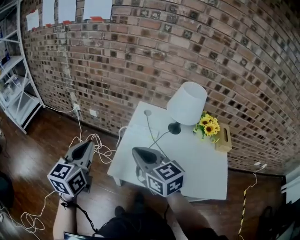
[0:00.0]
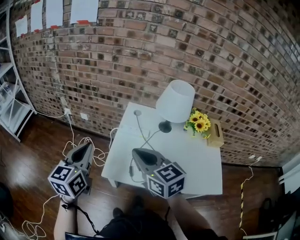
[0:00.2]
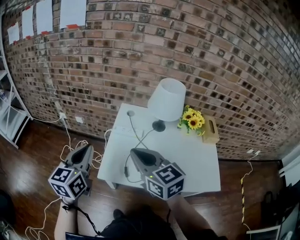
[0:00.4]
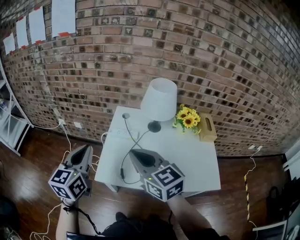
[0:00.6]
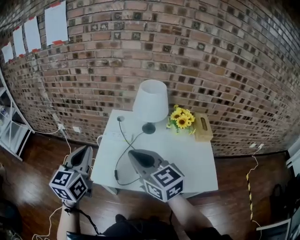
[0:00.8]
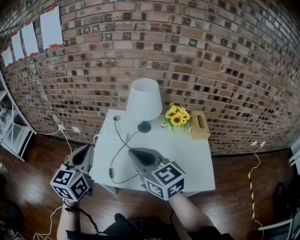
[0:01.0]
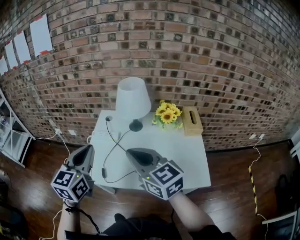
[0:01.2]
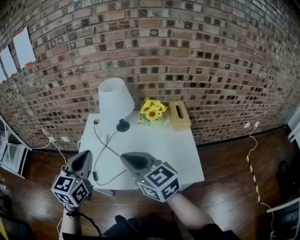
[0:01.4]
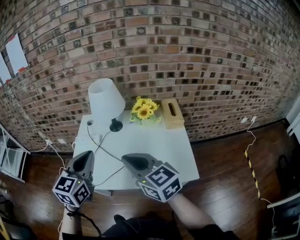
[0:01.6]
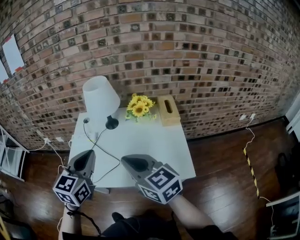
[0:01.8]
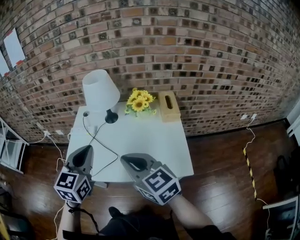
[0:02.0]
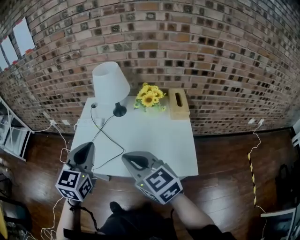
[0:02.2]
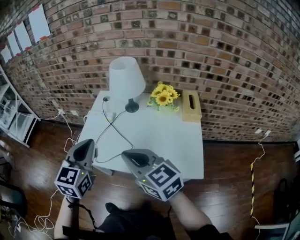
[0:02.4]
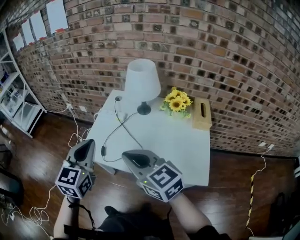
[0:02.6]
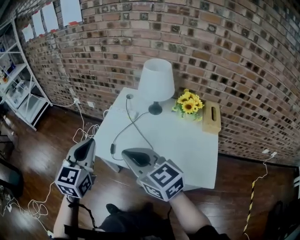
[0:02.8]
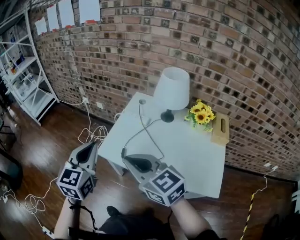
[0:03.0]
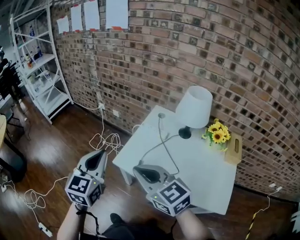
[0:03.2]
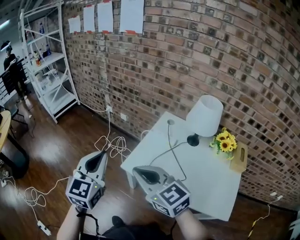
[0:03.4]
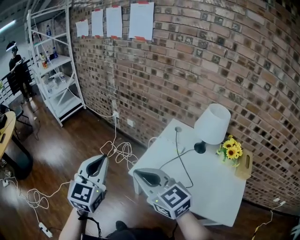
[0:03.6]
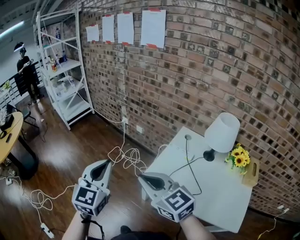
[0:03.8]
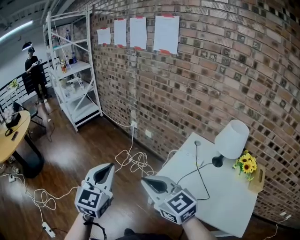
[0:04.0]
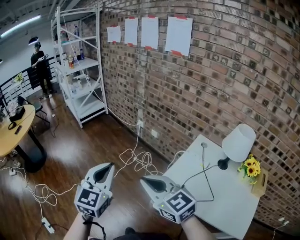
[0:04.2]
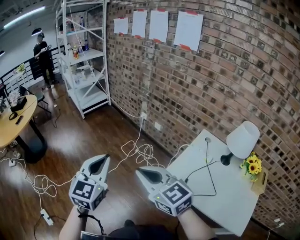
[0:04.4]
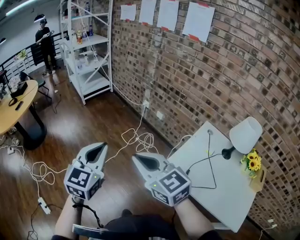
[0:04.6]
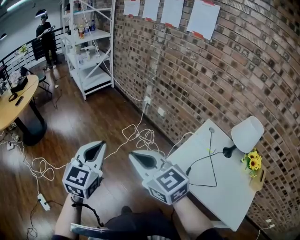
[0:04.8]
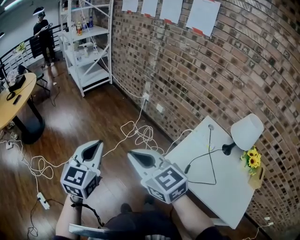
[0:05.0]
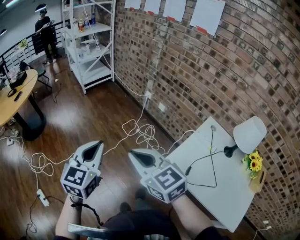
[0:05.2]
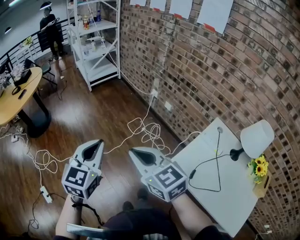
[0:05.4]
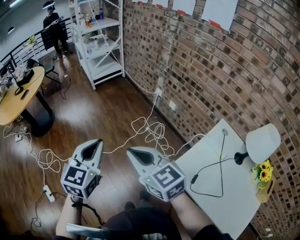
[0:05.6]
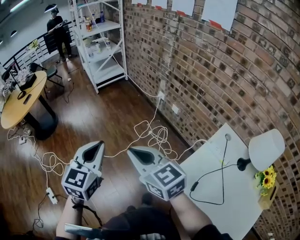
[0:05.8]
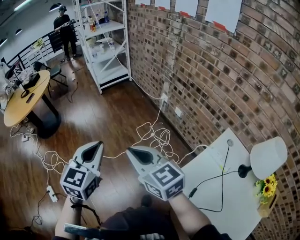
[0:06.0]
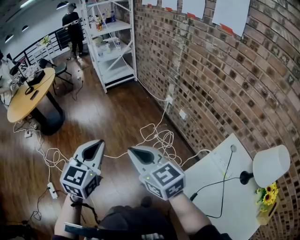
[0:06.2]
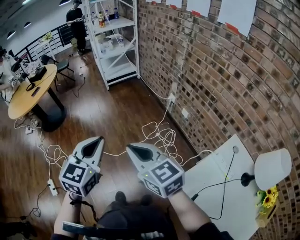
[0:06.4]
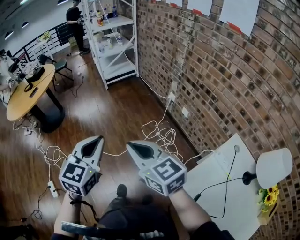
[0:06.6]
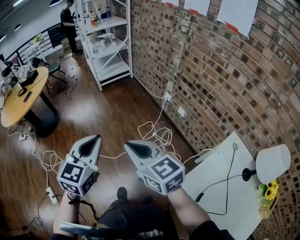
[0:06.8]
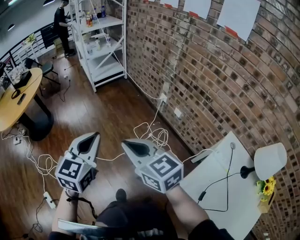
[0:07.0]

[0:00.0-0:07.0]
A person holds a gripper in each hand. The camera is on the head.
0:00.0 to 0:01.4: The left gripper heads to the right, covering some 30 cm. The right gripper shifts some 30 cm to the right and backward.
0:01.4 to 0:02.8: The right gripper travels to the left by about 10 cm, and turns by about 20 degrees. Meanwhile the left gripper heads to the left and backward, covering about 10 cm.
0:02.8 to 0:04.2: The left gripper travels to the left by approximately 30 cm, and changes its angle by approximately 20 degrees. The right gripper moves to the left and forward, some 30 cm, and changes its angle by approximately 20 degrees.
0:04.2 to 0:05.6: The right gripper goes some 15 cm forward and to the left. The left gripper moves to the left, forward and downward, roughly 15 cm.
0:05.6 to 0:07.0: Both grippers move forward, roughly 15 cm.

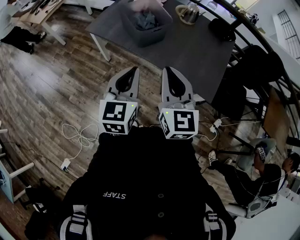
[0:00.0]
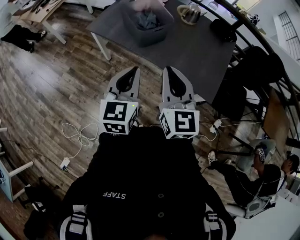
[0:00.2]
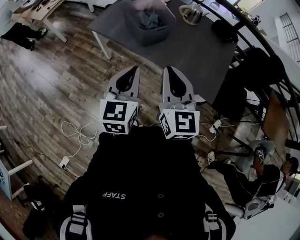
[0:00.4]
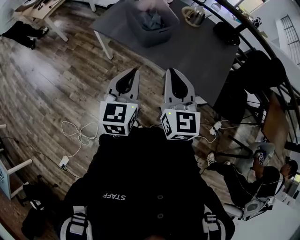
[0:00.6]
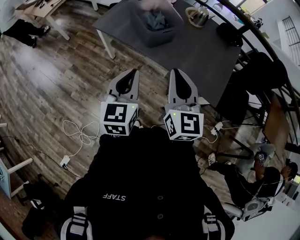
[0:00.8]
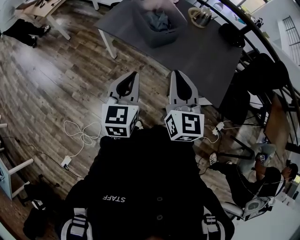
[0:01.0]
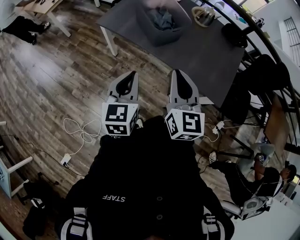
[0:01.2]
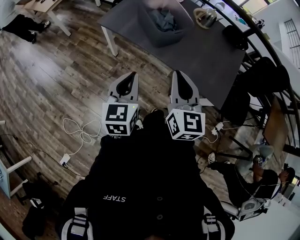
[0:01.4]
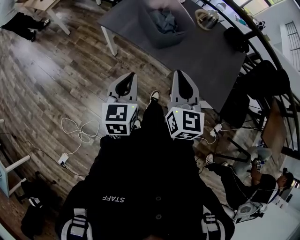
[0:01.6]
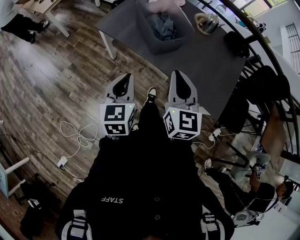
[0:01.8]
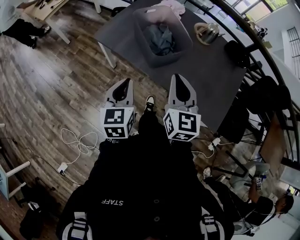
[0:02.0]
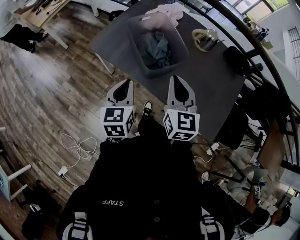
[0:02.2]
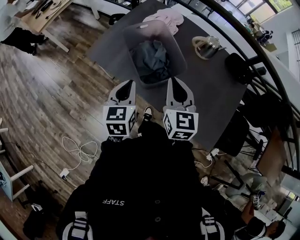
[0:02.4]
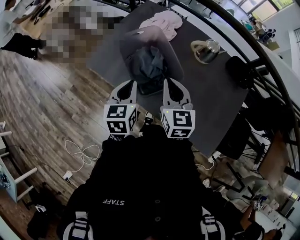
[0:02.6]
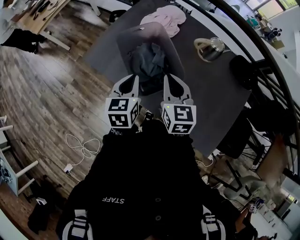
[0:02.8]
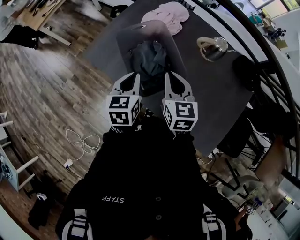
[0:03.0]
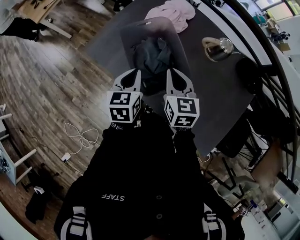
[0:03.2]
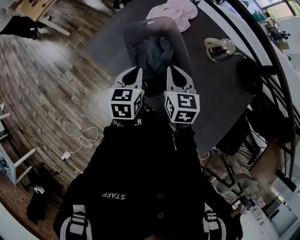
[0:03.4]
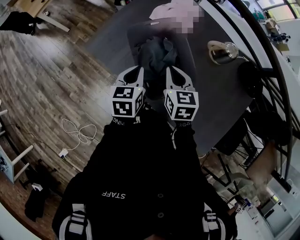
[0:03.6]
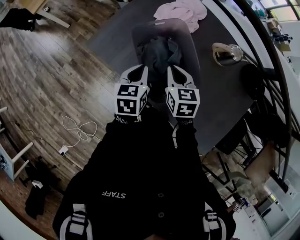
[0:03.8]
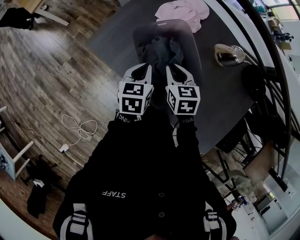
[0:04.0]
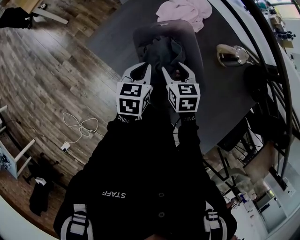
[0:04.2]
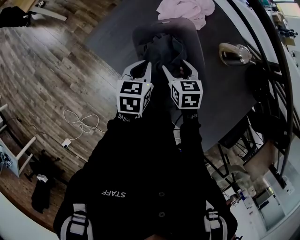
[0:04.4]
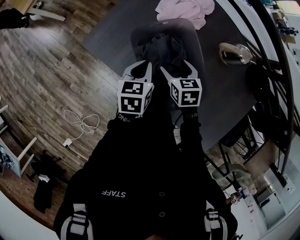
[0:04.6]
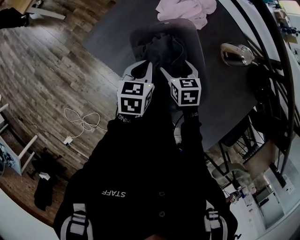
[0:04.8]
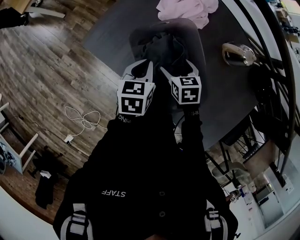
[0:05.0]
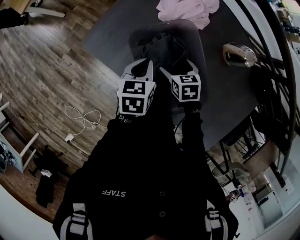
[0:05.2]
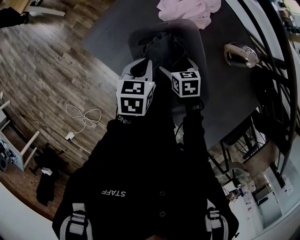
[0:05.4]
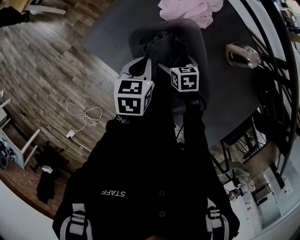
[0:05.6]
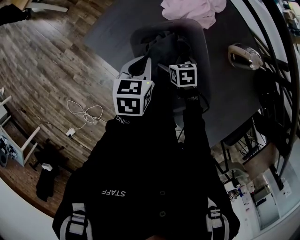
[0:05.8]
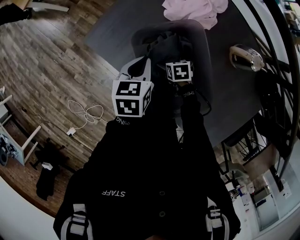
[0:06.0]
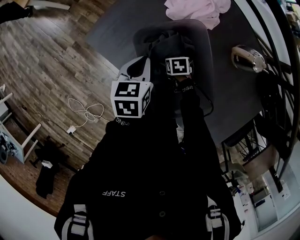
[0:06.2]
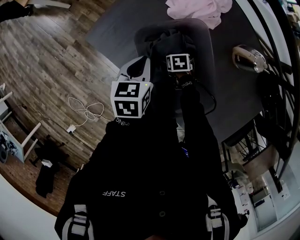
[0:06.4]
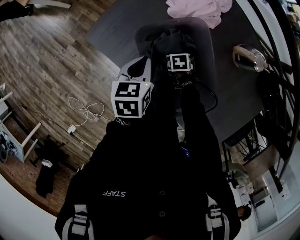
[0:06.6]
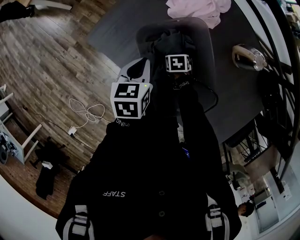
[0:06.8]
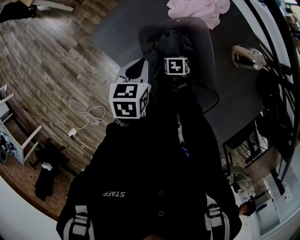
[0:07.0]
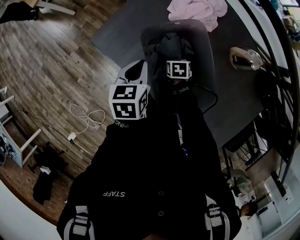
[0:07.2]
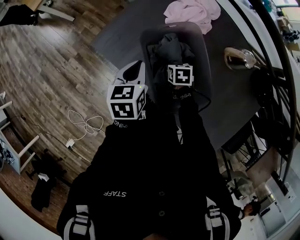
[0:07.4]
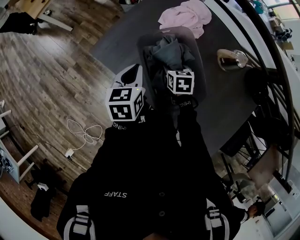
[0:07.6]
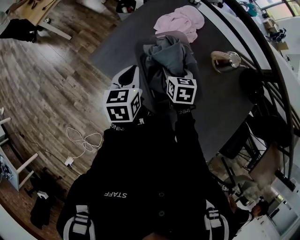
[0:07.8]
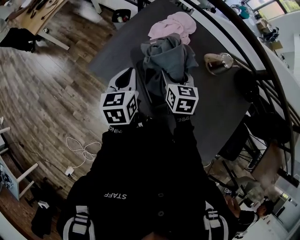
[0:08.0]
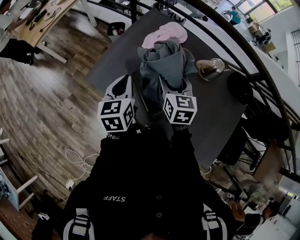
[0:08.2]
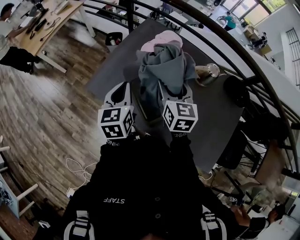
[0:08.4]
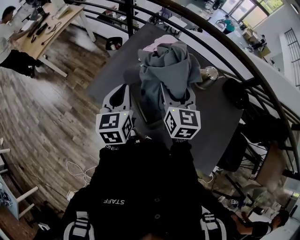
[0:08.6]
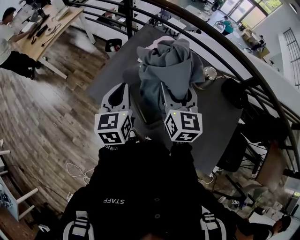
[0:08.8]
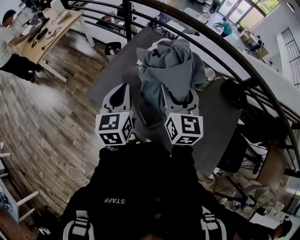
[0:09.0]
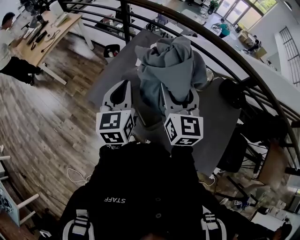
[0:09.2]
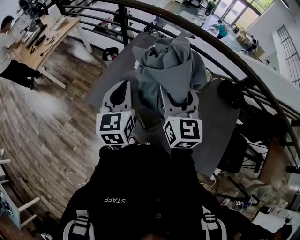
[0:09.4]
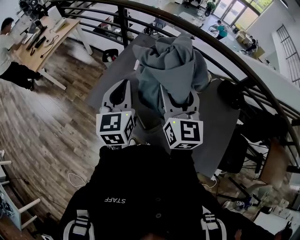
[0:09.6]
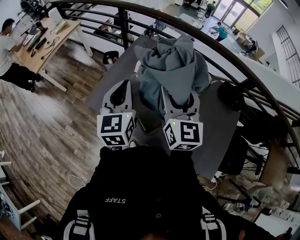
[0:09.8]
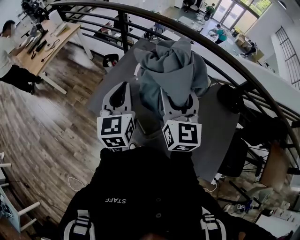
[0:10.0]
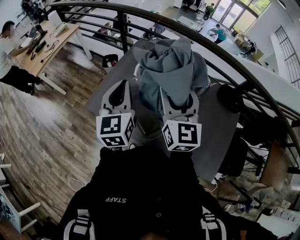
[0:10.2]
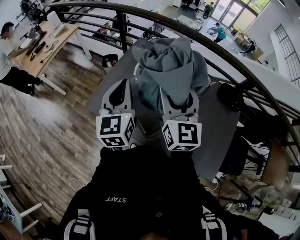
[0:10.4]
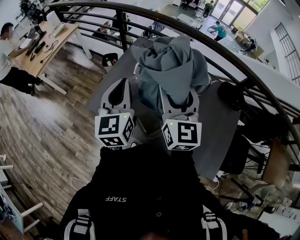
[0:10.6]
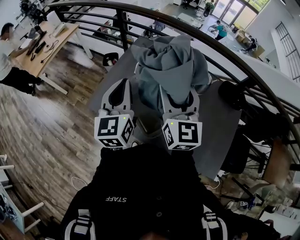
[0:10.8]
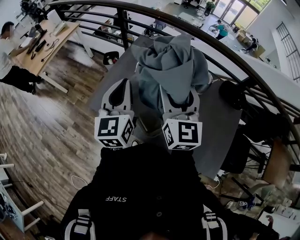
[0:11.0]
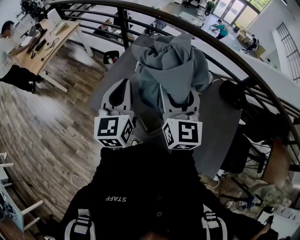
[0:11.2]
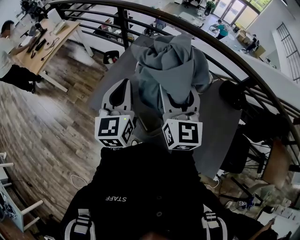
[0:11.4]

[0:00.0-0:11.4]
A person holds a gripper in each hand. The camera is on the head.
0:00.0 to 0:01.4: The right gripper travels to the left by roughly 5 cm; the left gripper is displaced to the left and downward by roughly 10 cm.
0:01.4 to 0:02.8: The grippers both shift forward by approximately 40 cm.
0:02.8 to 0:04.2: The left gripper shifts some 15 cm forward and downward. The right gripper goes some 20 cm downward, forward and to the left, changes its angle by roughly 30 degrees, and opens.
0:04.2 to 0:05.6: The left gripper is displaced forward by roughly 5 cm, while the right gripper shifts about 15 cm downward, and opens up.
0:05.6 to 0:07.2: The right gripper heads downward, covering about 5 cm, and closes its fingers; the left gripper ends up roughly 5 cm from where it was.
0:07.2 to 0:08.6: The left gripper shifts about 20 cm upward, and changes its angle by approximately 30 degrees. The right gripper moves upward, about 40 cm, and tilts its fingers some 60 degrees upward.
0:08.6 to 0:10.0: Both grippers move upward, approximately 10 cm.
0:10.0 to 0:11.4: The grippers make only small movements.

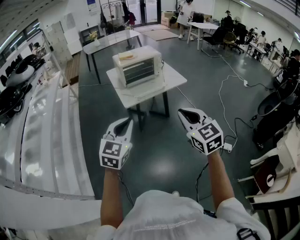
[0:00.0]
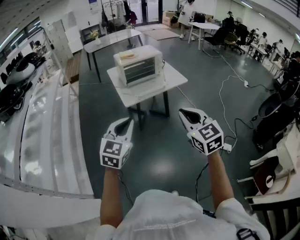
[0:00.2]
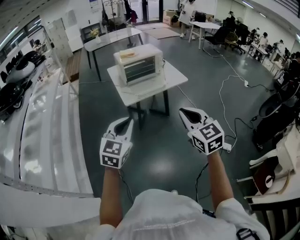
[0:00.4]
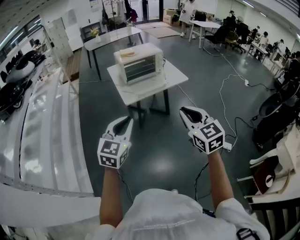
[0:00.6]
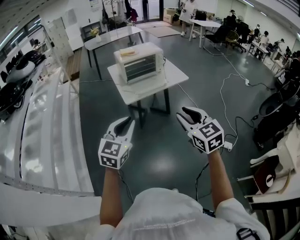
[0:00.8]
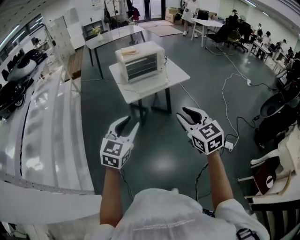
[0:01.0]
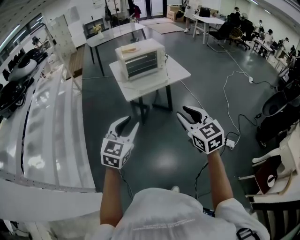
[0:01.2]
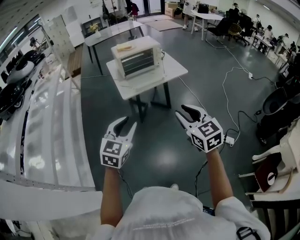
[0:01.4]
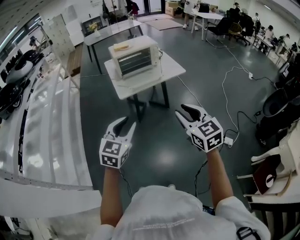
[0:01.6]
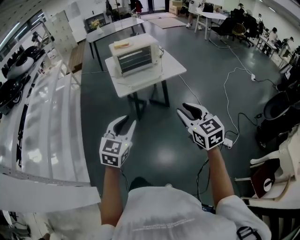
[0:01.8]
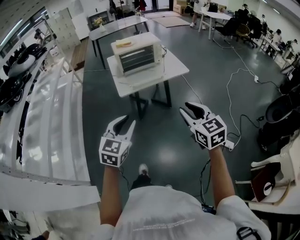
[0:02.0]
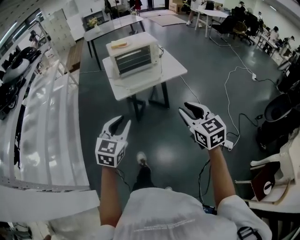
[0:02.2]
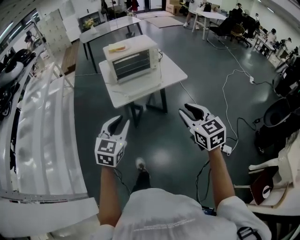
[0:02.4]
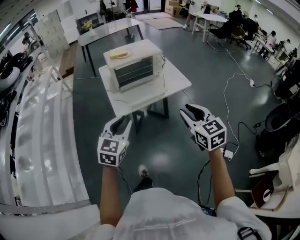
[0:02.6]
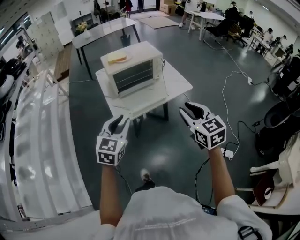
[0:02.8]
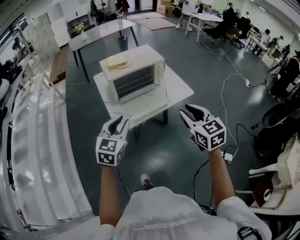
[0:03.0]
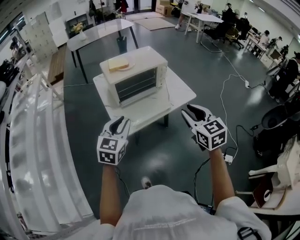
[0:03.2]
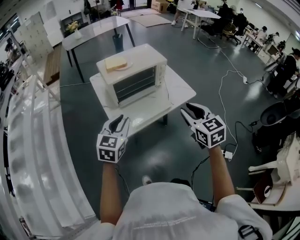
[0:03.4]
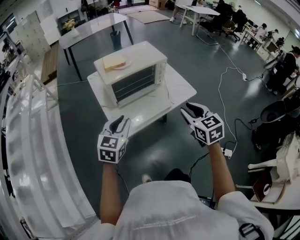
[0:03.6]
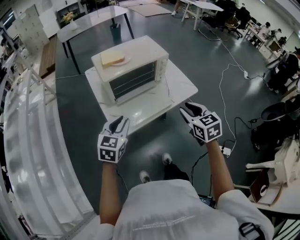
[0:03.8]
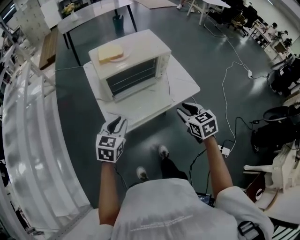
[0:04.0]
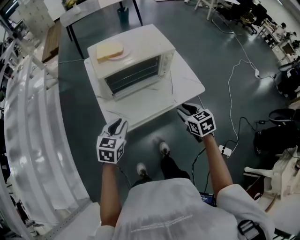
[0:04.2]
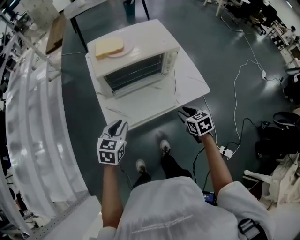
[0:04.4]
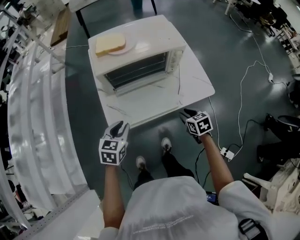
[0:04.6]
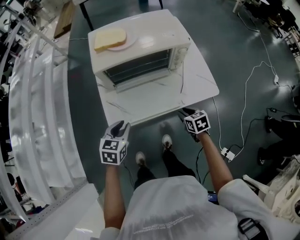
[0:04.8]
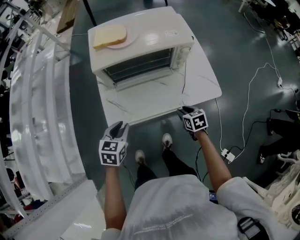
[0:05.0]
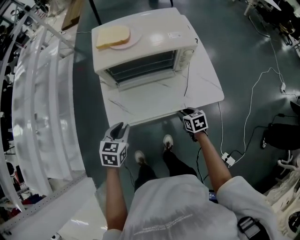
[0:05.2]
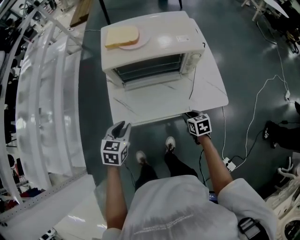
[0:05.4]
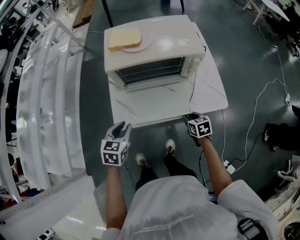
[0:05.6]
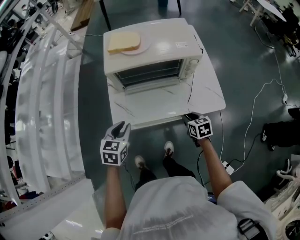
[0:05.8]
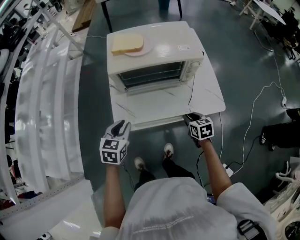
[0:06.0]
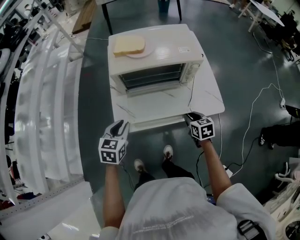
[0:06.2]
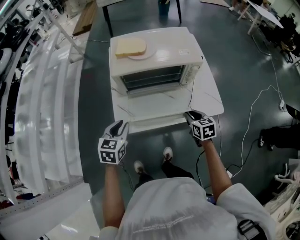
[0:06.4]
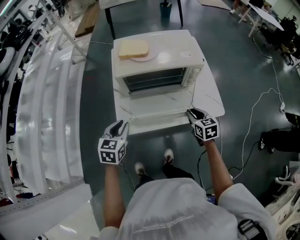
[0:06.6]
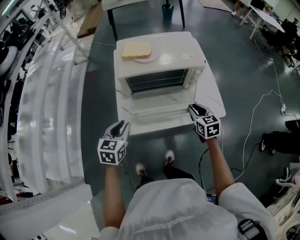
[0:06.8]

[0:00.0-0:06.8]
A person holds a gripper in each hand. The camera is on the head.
0:00.0 to 0:01.4: The left gripper ends up approximately 5 cm from where it was, and opens its fingers, while the right gripper opens its fingers.
0:01.4 to 0:02.8: The two grippers go some 30 cm forward.
0:02.8 to 0:04.0: Both grippers travel together forward and downward, about 20 cm.
0:04.0 to 0:05.4: The left gripper moves downward, roughly 10 cm, and changes its angle by about 30 degrees. The right gripper is displaced downward and forward by about 25 cm, and changes its angle by approximately 20 degrees.
0:05.4 to 0:06.8: The left gripper heads upward, covering approximately 5 cm, while the right gripper goes roughly 15 cm upward, and changes its angle by roughly 20 degrees.
